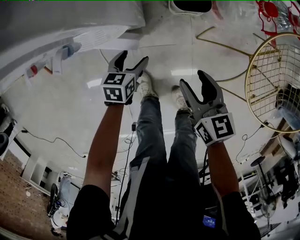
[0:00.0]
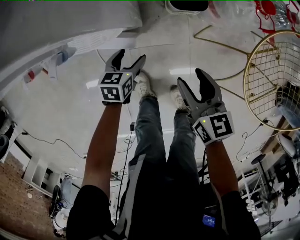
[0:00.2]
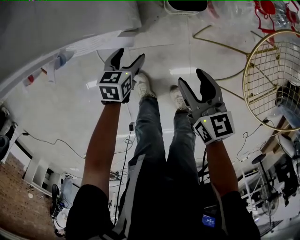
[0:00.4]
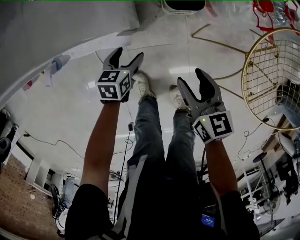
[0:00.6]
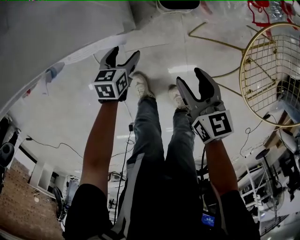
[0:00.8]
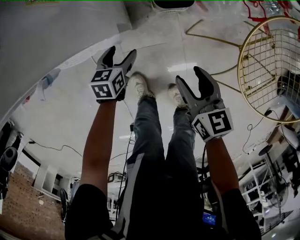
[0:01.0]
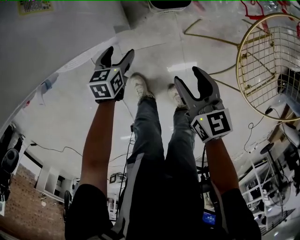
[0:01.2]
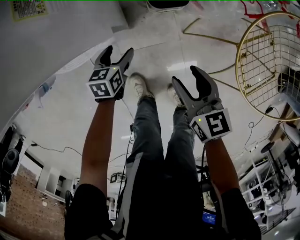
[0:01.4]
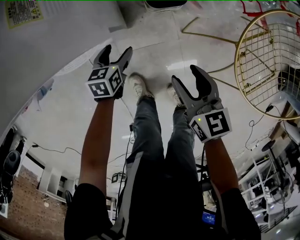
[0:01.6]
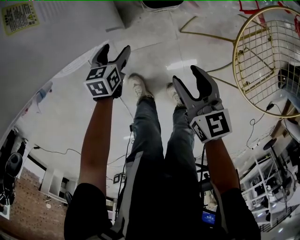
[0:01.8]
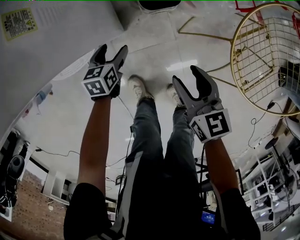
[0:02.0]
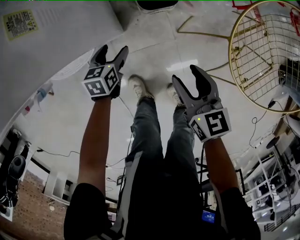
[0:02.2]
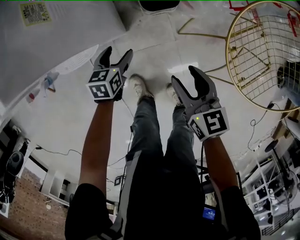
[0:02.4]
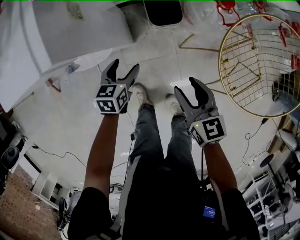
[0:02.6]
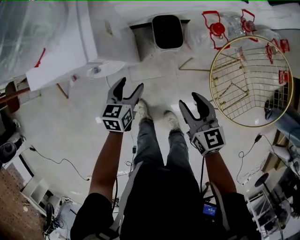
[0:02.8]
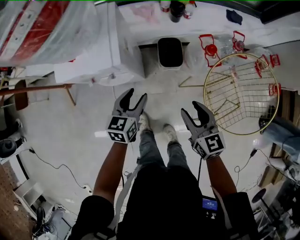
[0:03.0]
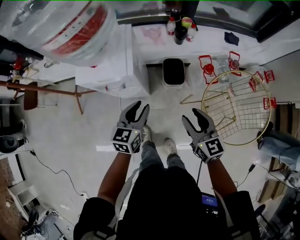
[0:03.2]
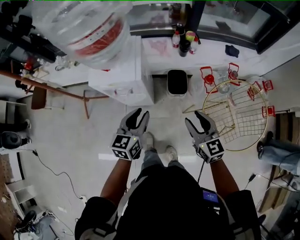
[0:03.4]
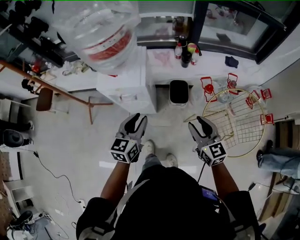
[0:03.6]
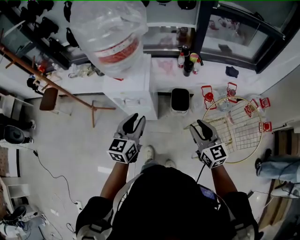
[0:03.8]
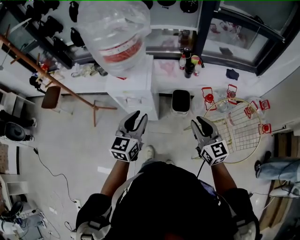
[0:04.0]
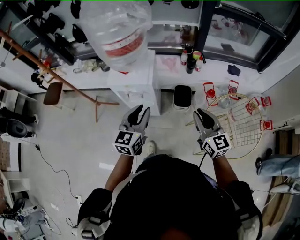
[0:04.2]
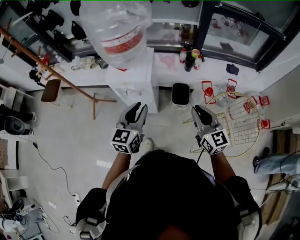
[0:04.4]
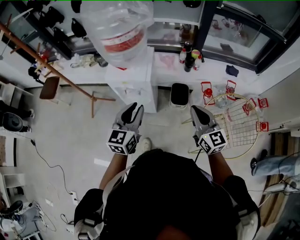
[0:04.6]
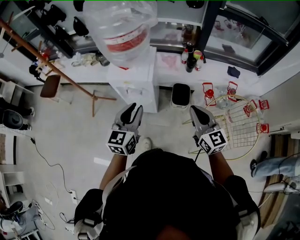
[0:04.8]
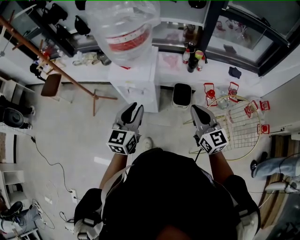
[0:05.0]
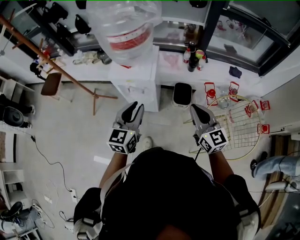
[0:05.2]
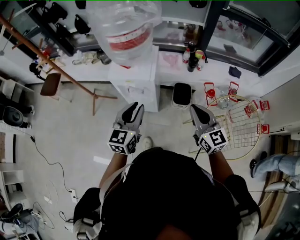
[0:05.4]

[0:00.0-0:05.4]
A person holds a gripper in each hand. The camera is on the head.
0:00.0 to 0:01.4: The left gripper shifts roughly 5 cm forward.
0:01.4 to 0:02.8: Both grippers travel together upward, some 25 cm.
0:02.8 to 0:04.0: The grippers both shift upward by roughly 35 cm. The right gripper swivels roughly 30 degrees. Meanwhile the left gripper turns by some 30 degrees, and closes up.
0:04.0 to 0:05.4: The right gripper ends up roughly 5 cm from where it was.

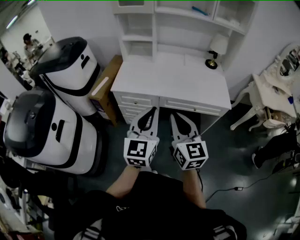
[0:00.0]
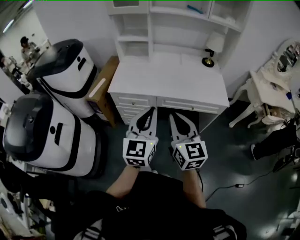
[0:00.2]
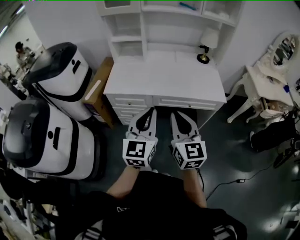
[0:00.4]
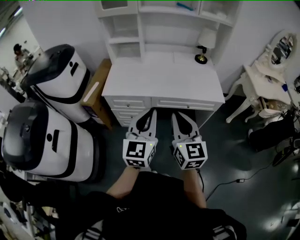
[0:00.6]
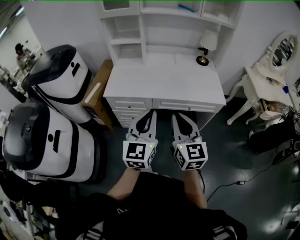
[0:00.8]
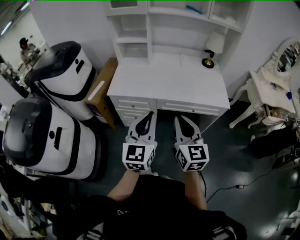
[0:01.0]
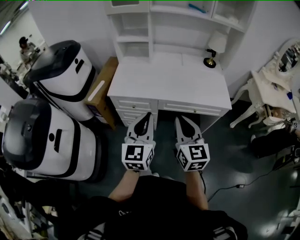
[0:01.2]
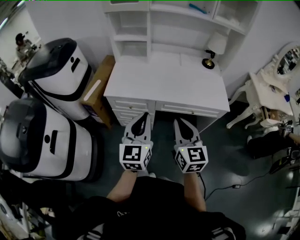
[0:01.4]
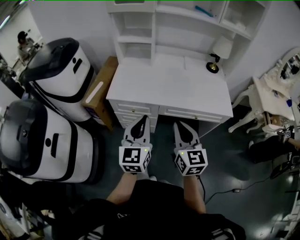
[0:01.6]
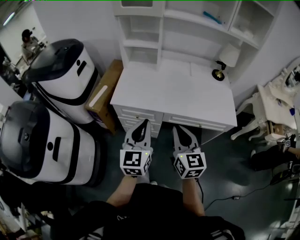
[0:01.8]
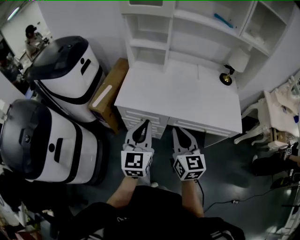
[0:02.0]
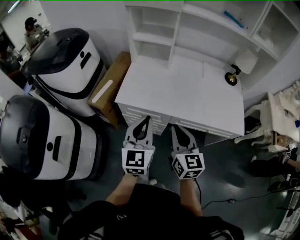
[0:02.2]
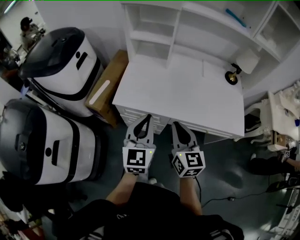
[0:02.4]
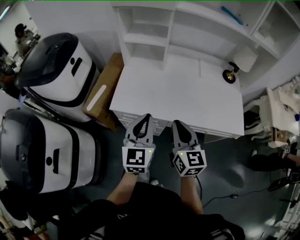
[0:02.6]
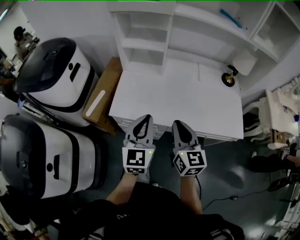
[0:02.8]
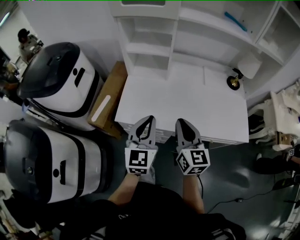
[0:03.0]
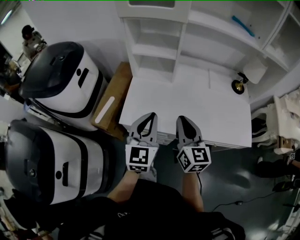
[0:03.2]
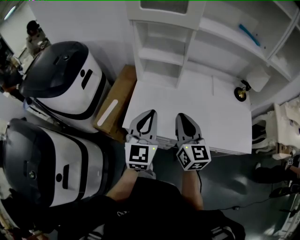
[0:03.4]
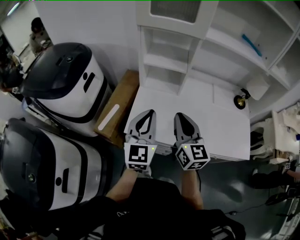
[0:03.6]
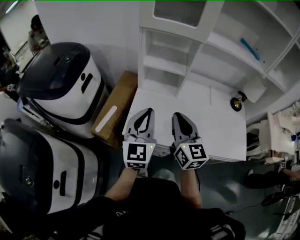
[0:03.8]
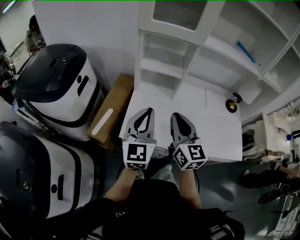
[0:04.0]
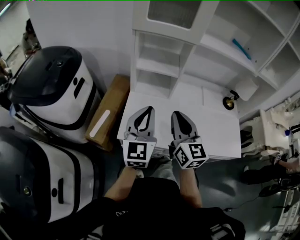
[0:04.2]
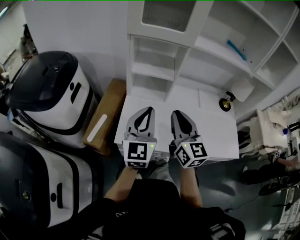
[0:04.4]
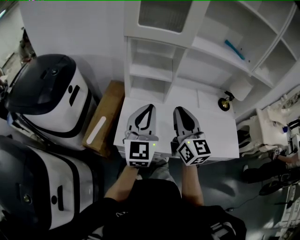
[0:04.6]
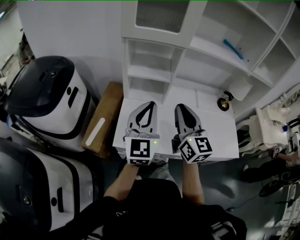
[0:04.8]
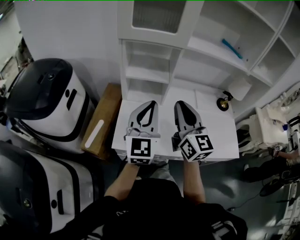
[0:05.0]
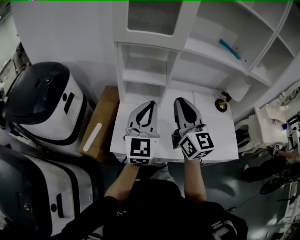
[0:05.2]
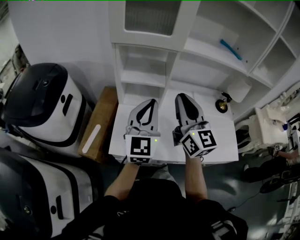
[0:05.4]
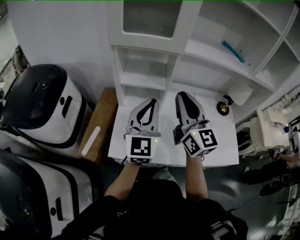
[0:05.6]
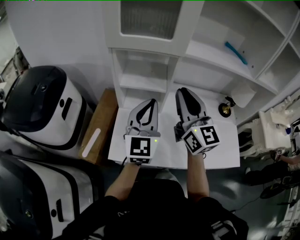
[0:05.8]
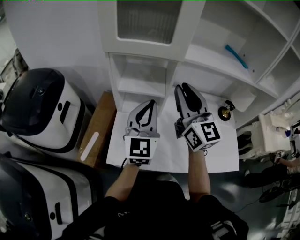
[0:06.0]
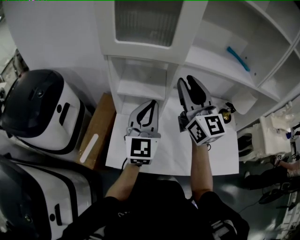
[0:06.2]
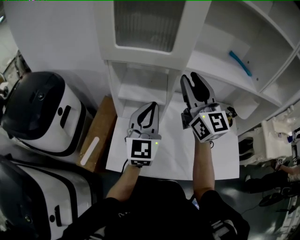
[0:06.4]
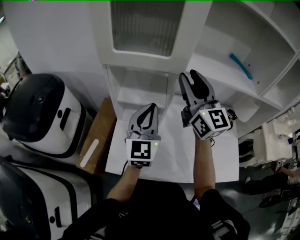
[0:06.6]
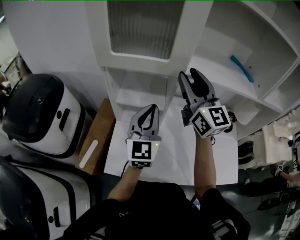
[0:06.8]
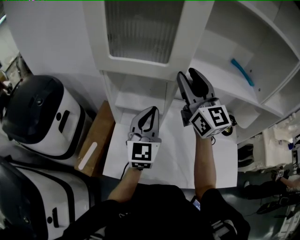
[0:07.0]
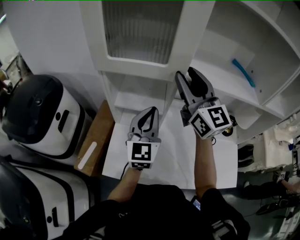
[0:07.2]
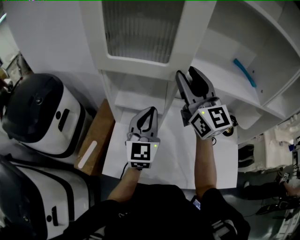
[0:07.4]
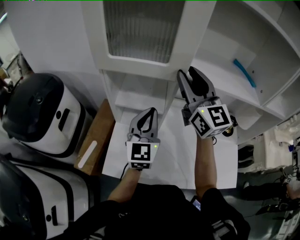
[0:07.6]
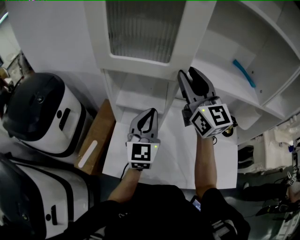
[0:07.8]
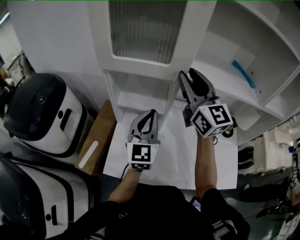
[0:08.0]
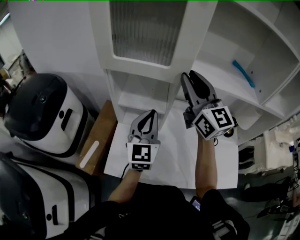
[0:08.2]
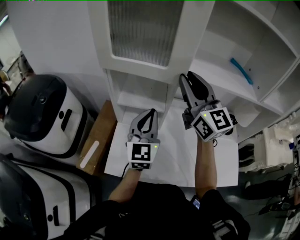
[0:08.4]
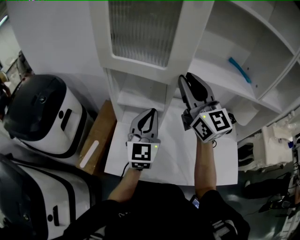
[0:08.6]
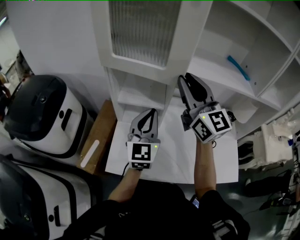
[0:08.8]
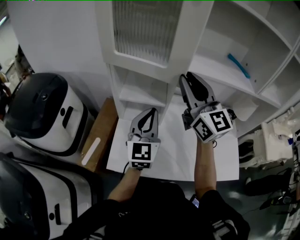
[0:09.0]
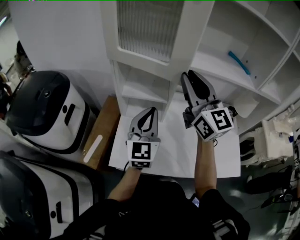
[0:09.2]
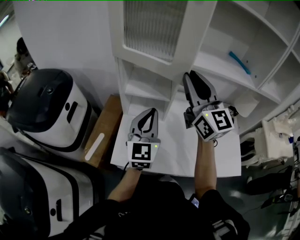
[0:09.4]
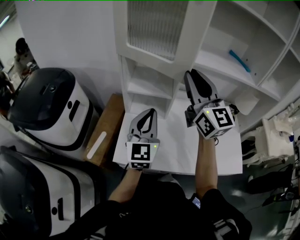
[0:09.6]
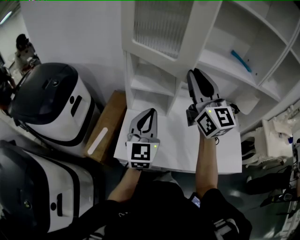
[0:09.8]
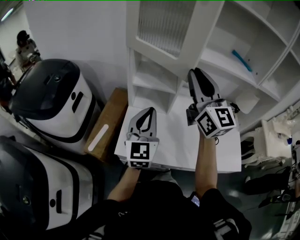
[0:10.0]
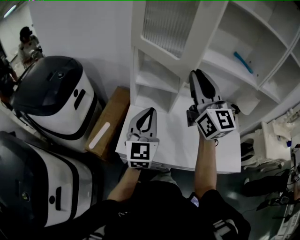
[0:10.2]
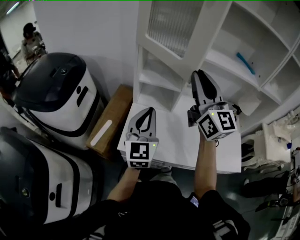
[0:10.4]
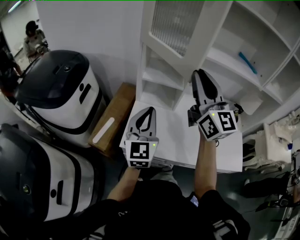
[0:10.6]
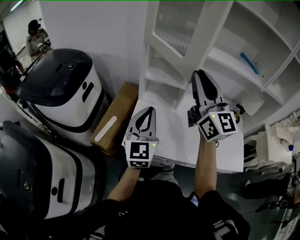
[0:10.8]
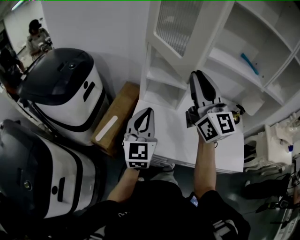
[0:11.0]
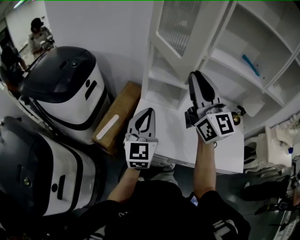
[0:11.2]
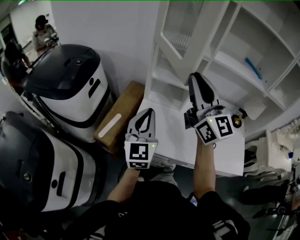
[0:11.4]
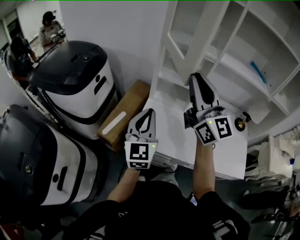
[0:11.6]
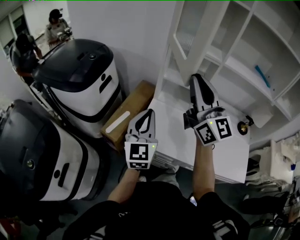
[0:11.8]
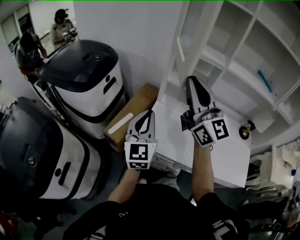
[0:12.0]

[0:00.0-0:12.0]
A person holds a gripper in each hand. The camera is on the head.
0:00.0 to 0:01.6: The left gripper is displaced forward, to the left and downward by about 10 cm; the right gripper goes some 10 cm forward.
0:01.6 to 0:03.0: The grippers both shift forward by about 20 cm.
0:03.0 to 0:04.4: The two grippers go some 15 cm forward, to the left and upward.
0:04.4 to 0:06.0: The right gripper travels forward and upward by approximately 20 cm. Meanwhile the left gripper is displaced forward and to the right by roughly 15 cm.
0:06.0 to 0:07.6: The right gripper travels forward and upward by some 15 cm. Meanwhile the left gripper shifts about 5 cm forward.
0:07.6 to 0:09.0: Both grippers travel together backward, about 5 cm.
0:09.0 to 0:10.4: The right gripper travels backward and to the left by approximately 10 cm; the left gripper travels to the left and backward by approximately 15 cm.
0:10.4 to 0:12.0: Both grippers travel together to the left, some 10 cm. The right gripper swivels approximately 20 degrees.

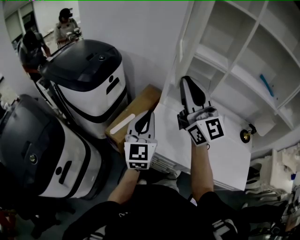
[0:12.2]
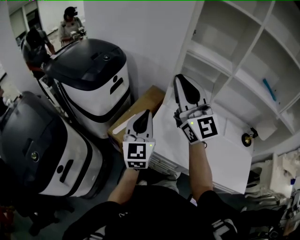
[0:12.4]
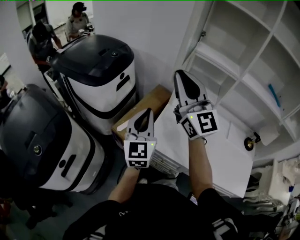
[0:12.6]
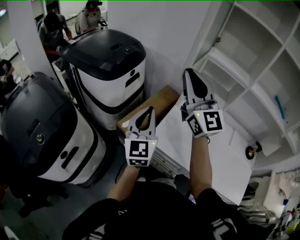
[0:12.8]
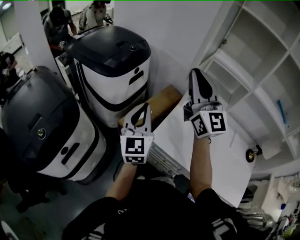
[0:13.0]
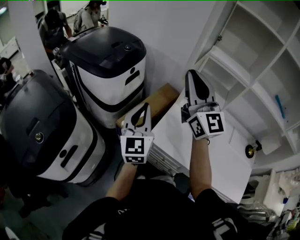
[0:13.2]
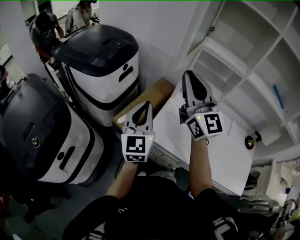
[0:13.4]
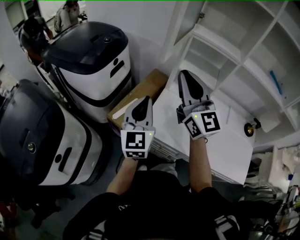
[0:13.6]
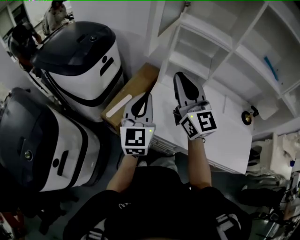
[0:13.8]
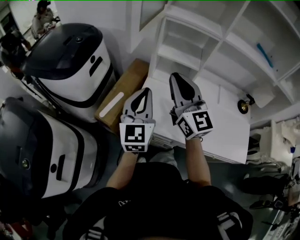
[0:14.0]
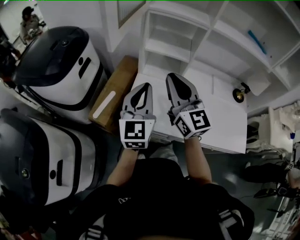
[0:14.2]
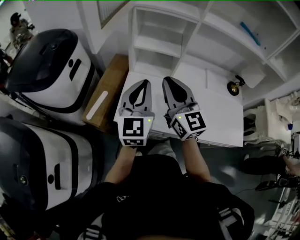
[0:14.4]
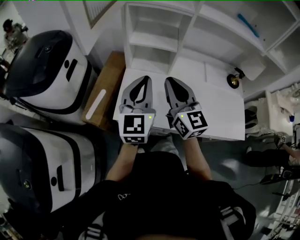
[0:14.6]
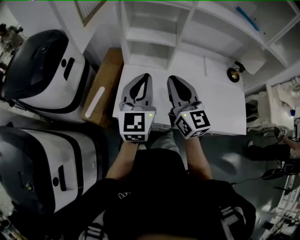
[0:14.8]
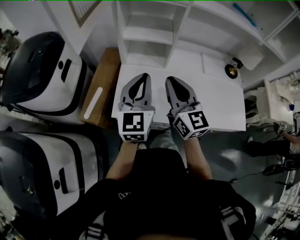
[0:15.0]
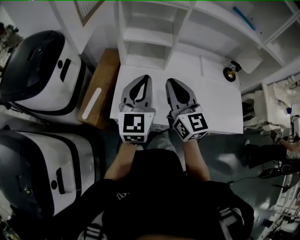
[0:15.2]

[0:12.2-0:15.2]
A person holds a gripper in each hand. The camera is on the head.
0:12.2 to 0:13.8: The left gripper moves approximately 10 cm to the left and comes back; the right gripper heads downward, covering some 10 cm.
0:13.8 to 0:15.2: The right gripper heads to the right and downward, covering approximately 15 cm, and turns by some 20 degrees; the left gripper goes roughly 15 cm to the right.

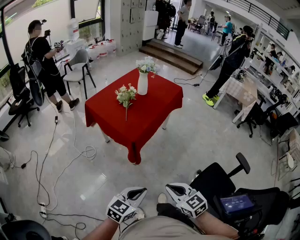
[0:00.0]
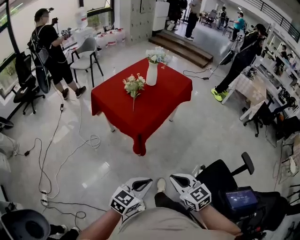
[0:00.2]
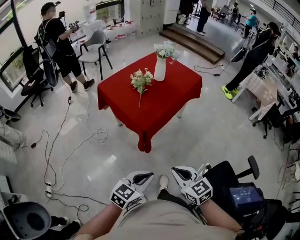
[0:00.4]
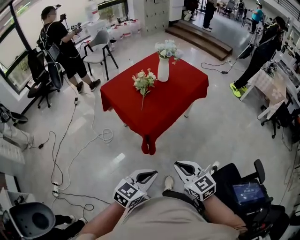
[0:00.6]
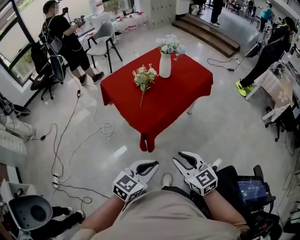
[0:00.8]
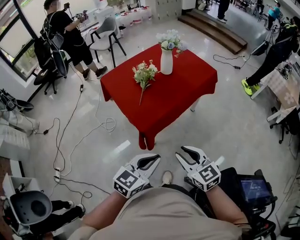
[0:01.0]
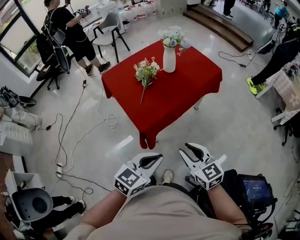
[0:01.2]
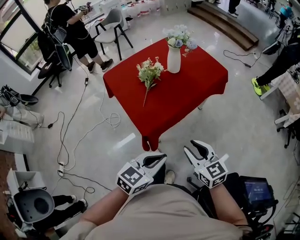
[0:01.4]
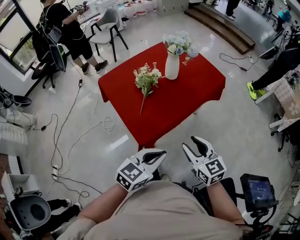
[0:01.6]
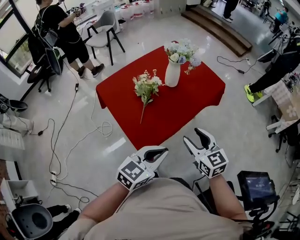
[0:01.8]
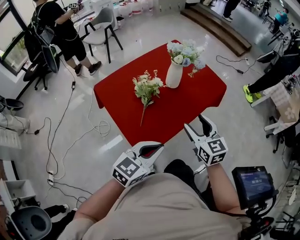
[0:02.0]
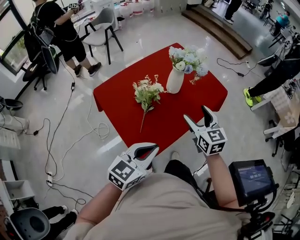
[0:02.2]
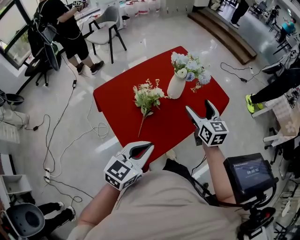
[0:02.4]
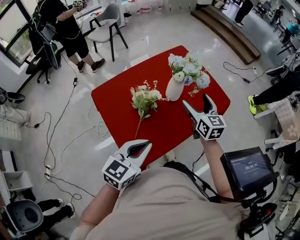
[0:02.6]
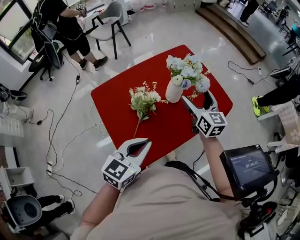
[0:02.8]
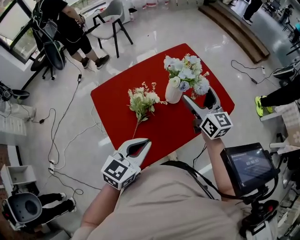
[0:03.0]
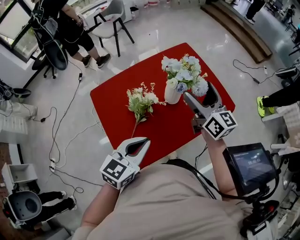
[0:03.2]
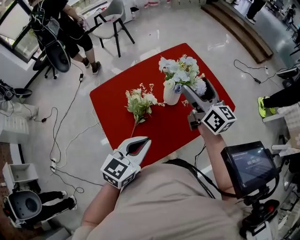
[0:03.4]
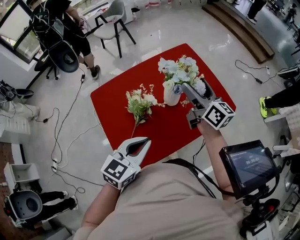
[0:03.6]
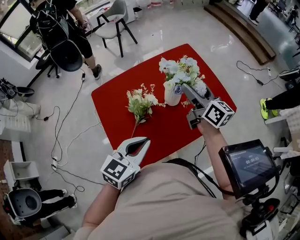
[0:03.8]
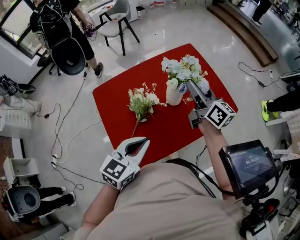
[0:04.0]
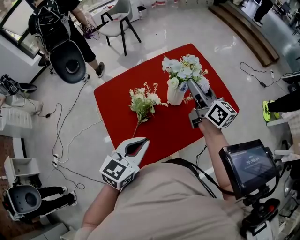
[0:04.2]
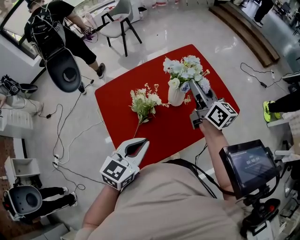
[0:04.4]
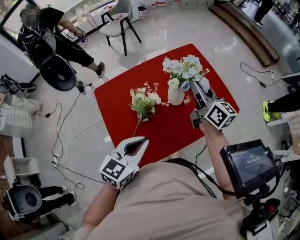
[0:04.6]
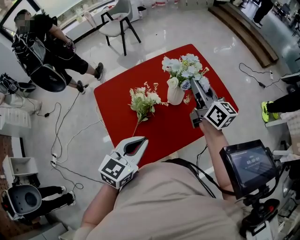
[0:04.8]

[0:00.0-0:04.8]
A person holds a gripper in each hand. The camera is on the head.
0:00.0 to 0:01.6: Both grippers move forward, roughly 35 cm.
0:01.6 to 0:03.2: The left gripper goes about 25 cm forward. Meanwhile the right gripper goes about 40 cm forward, turns by about 30 degrees, and opens its fingers.
0:03.2 to 0:04.8: The right gripper closes up.
